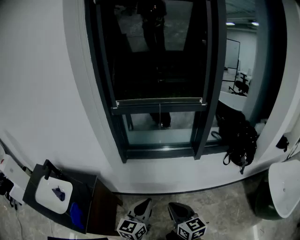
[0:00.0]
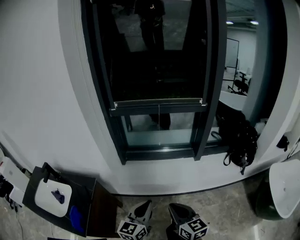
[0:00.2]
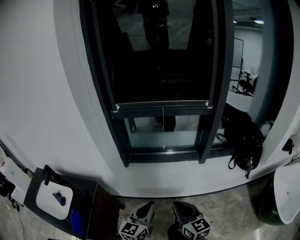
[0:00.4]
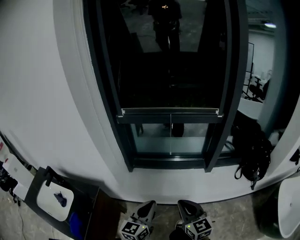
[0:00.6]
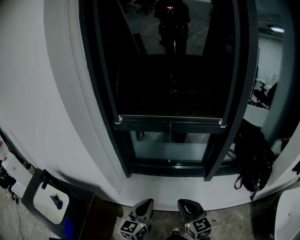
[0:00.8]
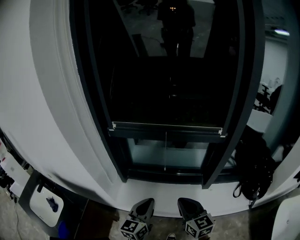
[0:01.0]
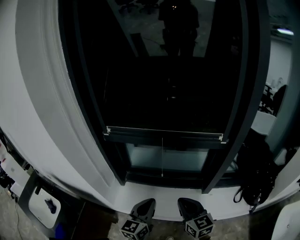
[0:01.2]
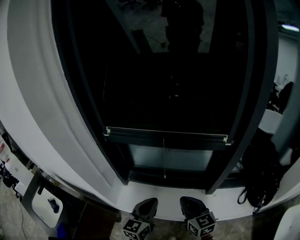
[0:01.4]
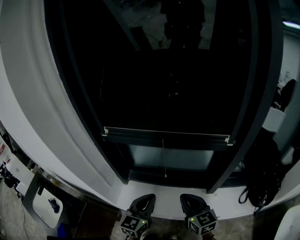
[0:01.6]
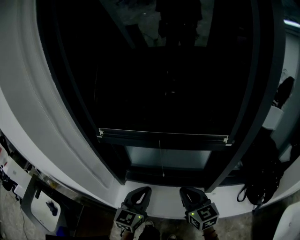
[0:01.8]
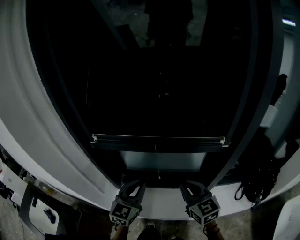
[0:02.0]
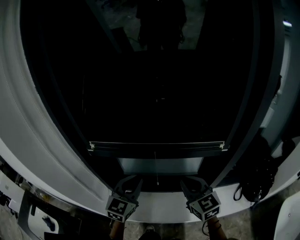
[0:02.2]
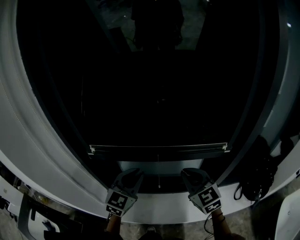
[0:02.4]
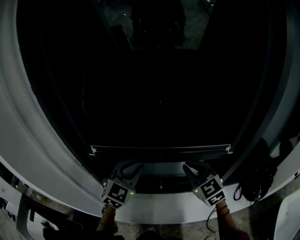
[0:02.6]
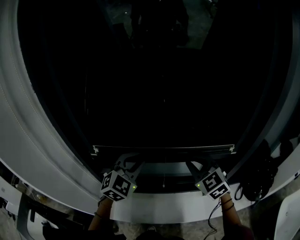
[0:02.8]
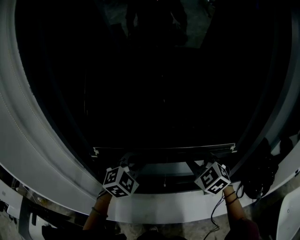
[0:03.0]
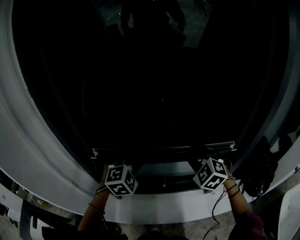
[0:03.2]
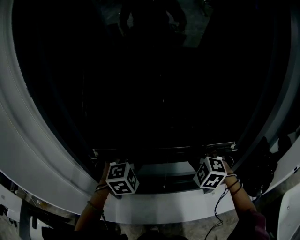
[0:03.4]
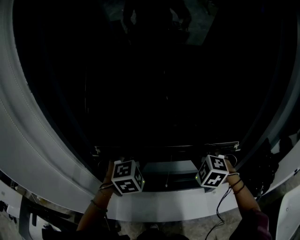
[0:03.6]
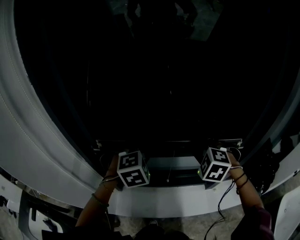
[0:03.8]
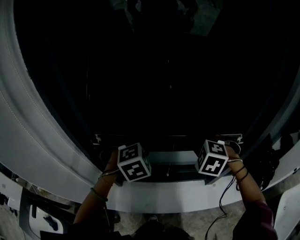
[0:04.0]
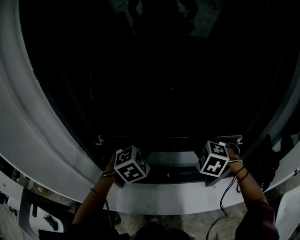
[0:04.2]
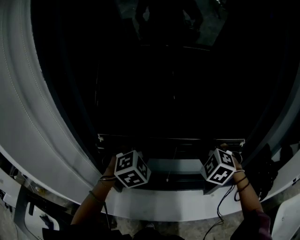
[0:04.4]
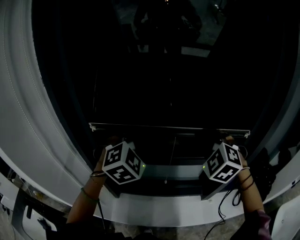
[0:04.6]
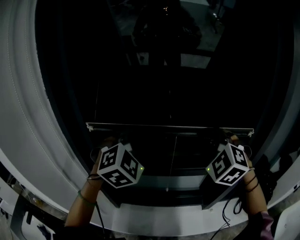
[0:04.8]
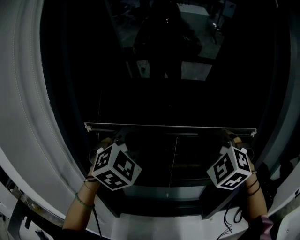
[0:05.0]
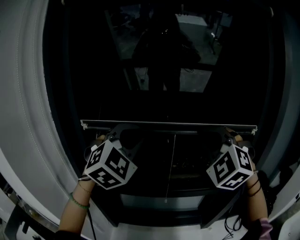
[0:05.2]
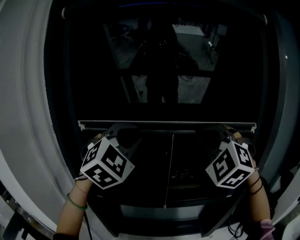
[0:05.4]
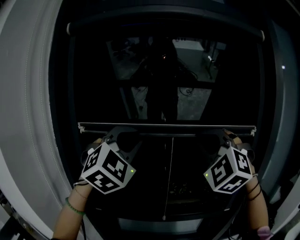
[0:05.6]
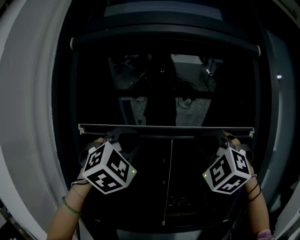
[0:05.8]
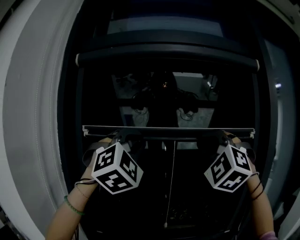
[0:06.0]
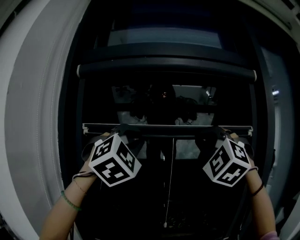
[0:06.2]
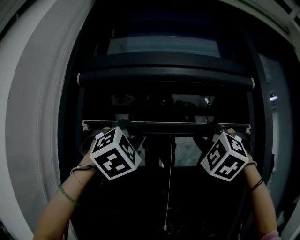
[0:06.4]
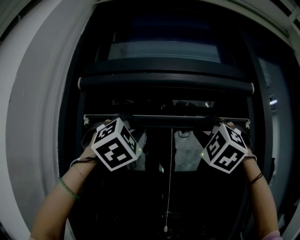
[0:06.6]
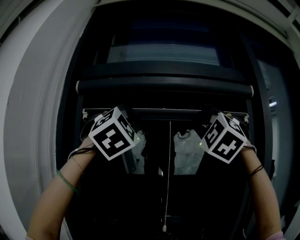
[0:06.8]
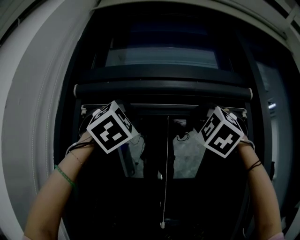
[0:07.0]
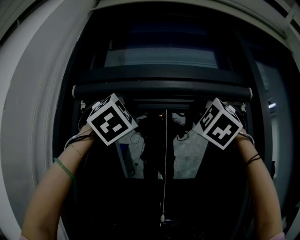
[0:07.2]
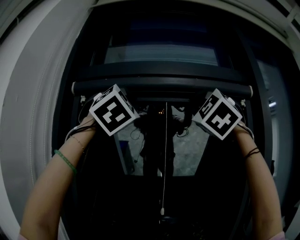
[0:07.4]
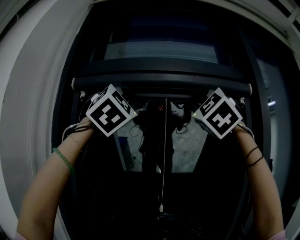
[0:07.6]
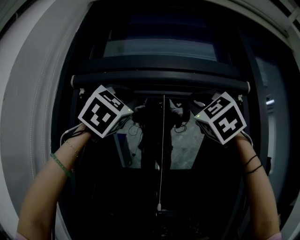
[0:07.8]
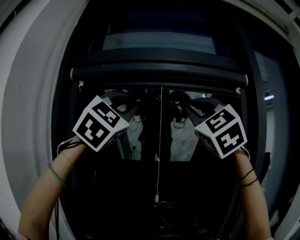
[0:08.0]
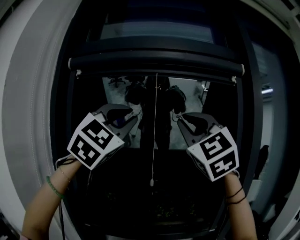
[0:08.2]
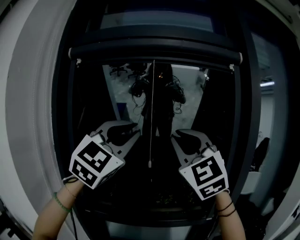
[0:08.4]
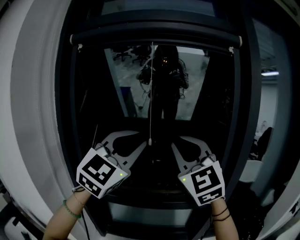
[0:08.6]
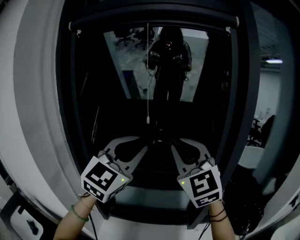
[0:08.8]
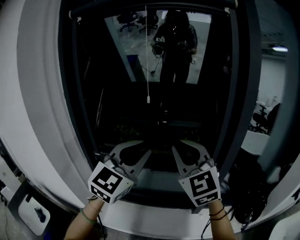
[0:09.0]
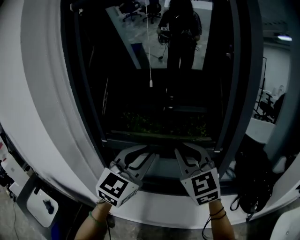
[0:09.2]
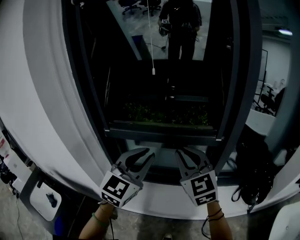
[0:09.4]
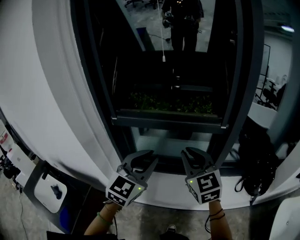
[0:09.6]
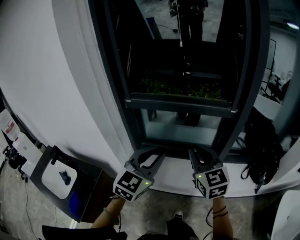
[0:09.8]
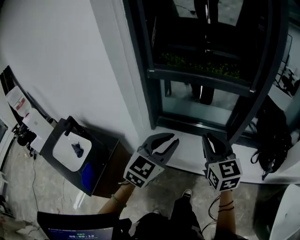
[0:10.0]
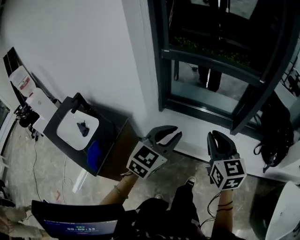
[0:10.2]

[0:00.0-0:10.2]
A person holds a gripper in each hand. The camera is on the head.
0:00.0 to 0:01.4: Both grippers travel together forward, roughly 35 cm.
0:01.4 to 0:03.0: The right gripper goes approximately 25 cm forward and upward, and rolls counterclockwise, seen from behind, by roughly 40 degrees. Meanwhile the left gripper travels forward by approximately 25 cm, and rolls clockwise, seen from behind, by some 60 degrees.
0:03.0 to 0:04.4: The right gripper swivels about 20 degrees.
0:04.4 to 0:05.8: The grippers both shift upward by approximately 40 cm. The right gripper angles its fingers upward, by about 40 degrees, while the left gripper angles its fingers upward, by about 40 degrees.
0:05.8 to 0:07.2: The grippers both shift upward by roughly 25 cm.
0:07.2 to 0:08.8: Both grippers travel together downward, some 35 cm. The right gripper swivels some 40 degrees, while the left gripper rotates around the line of its fingers by some 40 degrees, counterclockwise from behind.
0:08.8 to 0:10.2: The two grippers go roughly 50 cm backward and downward. The right gripper turns by roughly 40 degrees; the left gripper changes its angle by about 30 degrees.

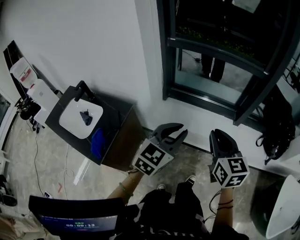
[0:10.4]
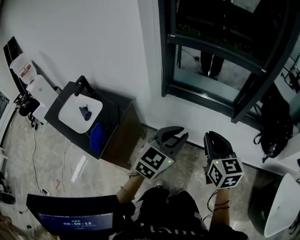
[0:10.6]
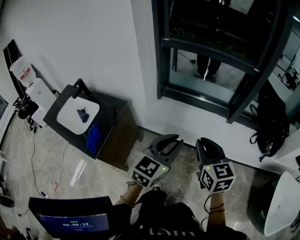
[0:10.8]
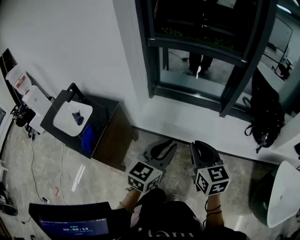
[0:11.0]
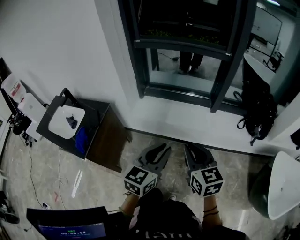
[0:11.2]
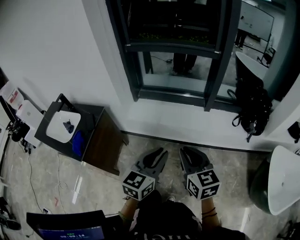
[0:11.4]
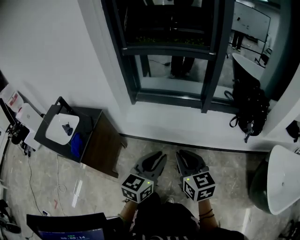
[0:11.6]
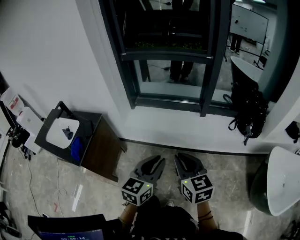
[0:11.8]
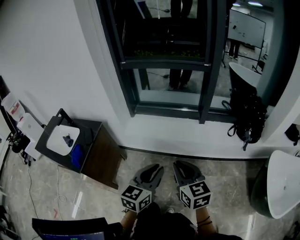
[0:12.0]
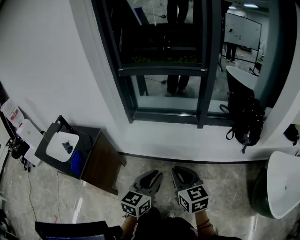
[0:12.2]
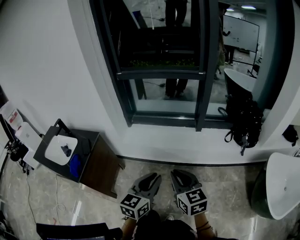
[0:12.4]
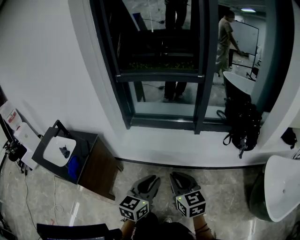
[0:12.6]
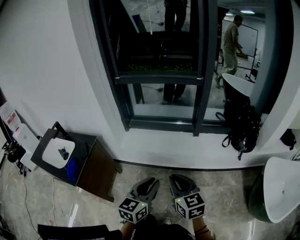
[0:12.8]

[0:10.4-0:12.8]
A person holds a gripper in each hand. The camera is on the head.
0:10.4 to 0:11.6: Both grippers move backward and to the right, some 25 cm.
0:11.6 to 0:12.8: The grippers make only small movements.

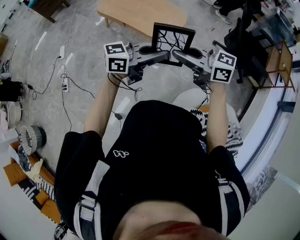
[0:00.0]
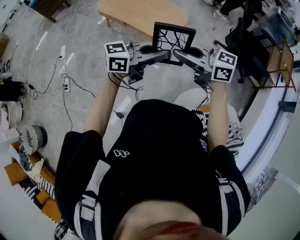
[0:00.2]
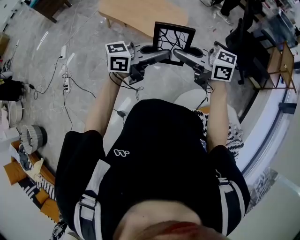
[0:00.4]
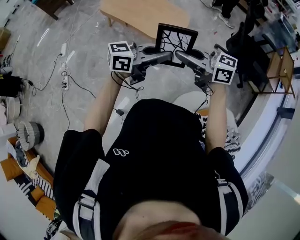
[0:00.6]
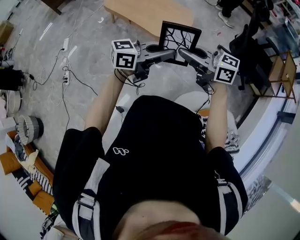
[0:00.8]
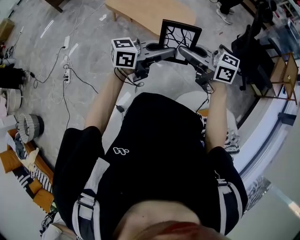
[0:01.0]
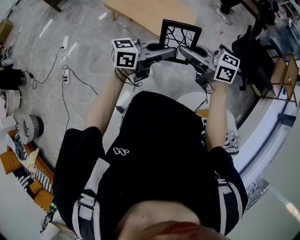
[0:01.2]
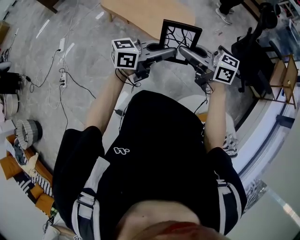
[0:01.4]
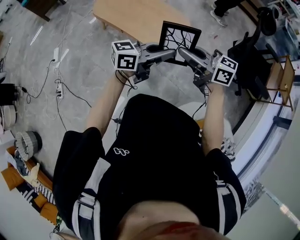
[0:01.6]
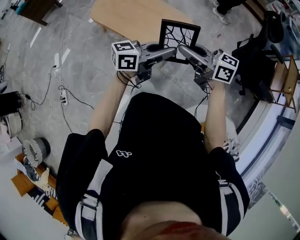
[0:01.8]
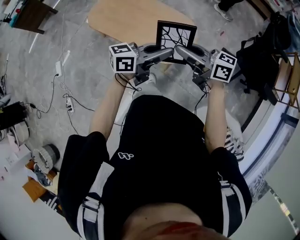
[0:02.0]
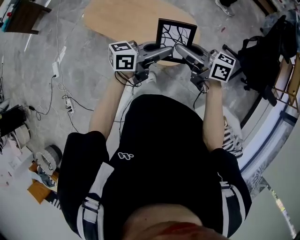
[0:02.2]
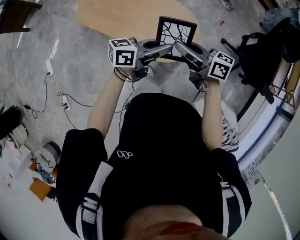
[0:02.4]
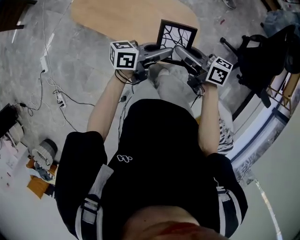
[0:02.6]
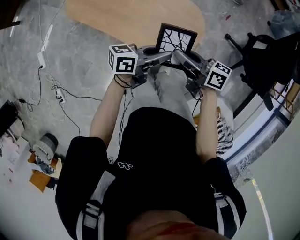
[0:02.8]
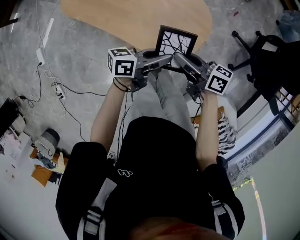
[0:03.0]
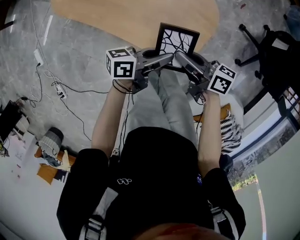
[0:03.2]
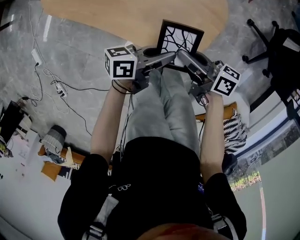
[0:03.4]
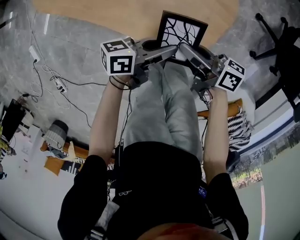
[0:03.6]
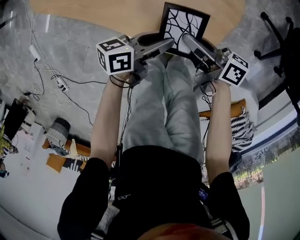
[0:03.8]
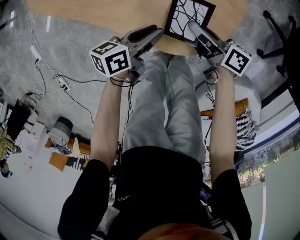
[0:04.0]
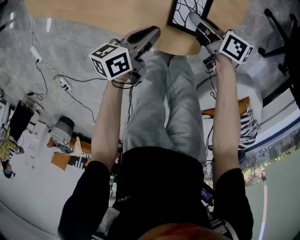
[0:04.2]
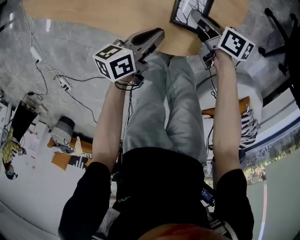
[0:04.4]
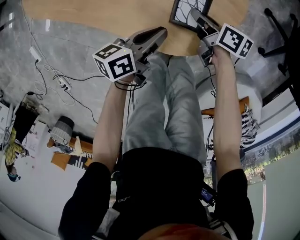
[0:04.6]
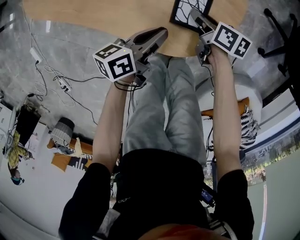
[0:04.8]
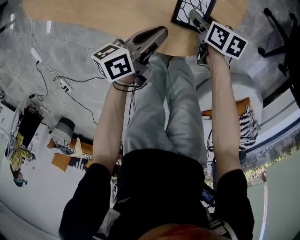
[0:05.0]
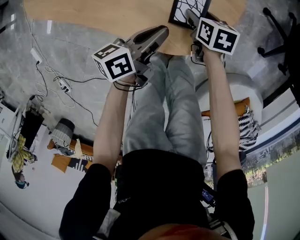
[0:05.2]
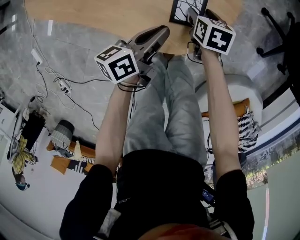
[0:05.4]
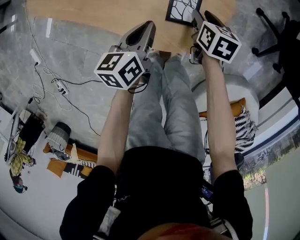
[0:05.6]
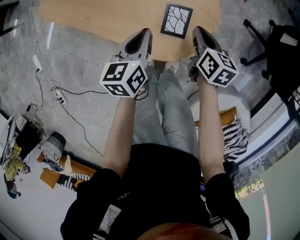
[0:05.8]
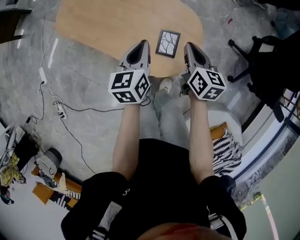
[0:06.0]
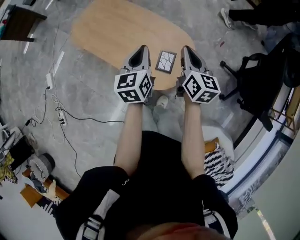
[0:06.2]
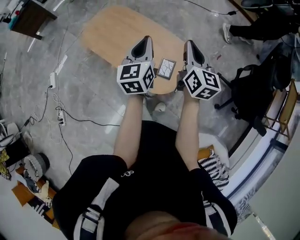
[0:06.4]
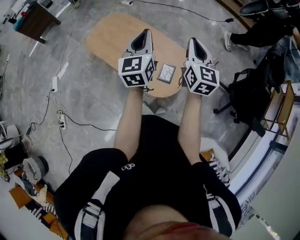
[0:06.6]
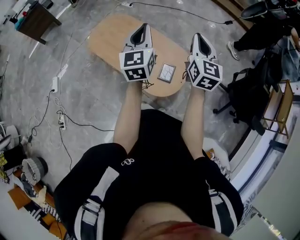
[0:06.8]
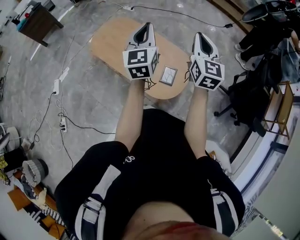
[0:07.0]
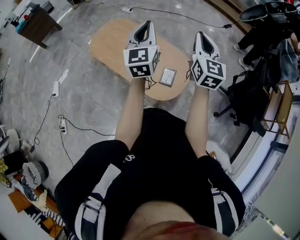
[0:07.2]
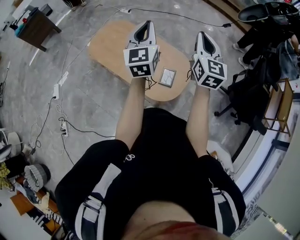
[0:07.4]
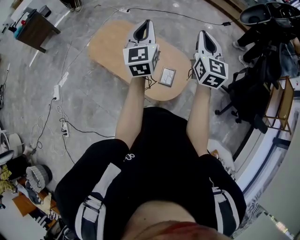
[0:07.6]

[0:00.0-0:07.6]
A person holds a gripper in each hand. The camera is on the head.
0:00.0 to 0:01.6: There are only small adjustments of the grippers.
0:01.6 to 0:03.0: Both grippers move downward, approximately 15 cm. The right gripper swivels approximately 30 degrees, while the left gripper turns by roughly 30 degrees.
0:03.0 to 0:04.6: Both grippers move downward, roughly 30 cm. The left gripper changes its angle by approximately 30 degrees. The right gripper turns by about 30 degrees.
0:04.6 to 0:06.0: Both grippers move upward, about 25 cm. The right gripper turns by about 40 degrees, and opens, then closes once more; the left gripper changes its angle by about 50 degrees.
0:06.0 to 0:07.6: Both grippers travel together upward, some 35 cm. The right gripper changes its angle by approximately 40 degrees; the left gripper turns by about 40 degrees.

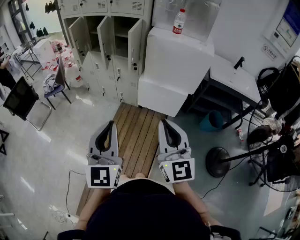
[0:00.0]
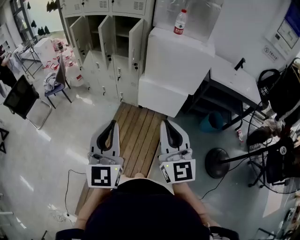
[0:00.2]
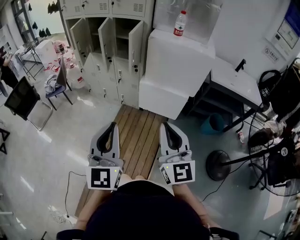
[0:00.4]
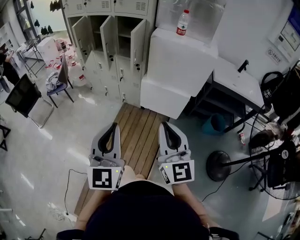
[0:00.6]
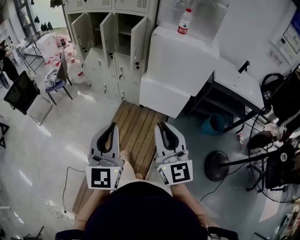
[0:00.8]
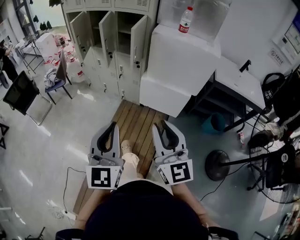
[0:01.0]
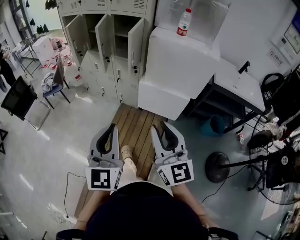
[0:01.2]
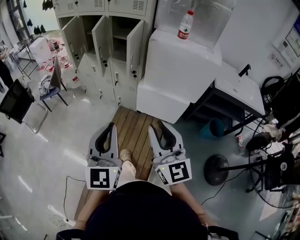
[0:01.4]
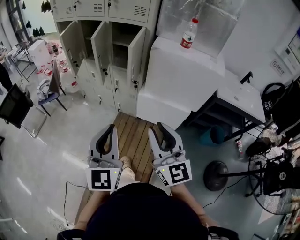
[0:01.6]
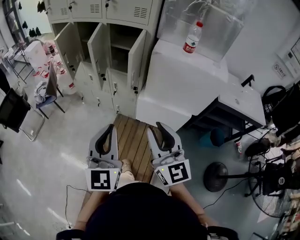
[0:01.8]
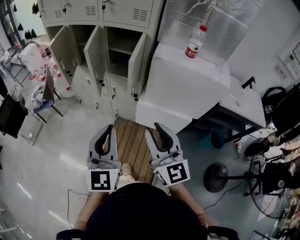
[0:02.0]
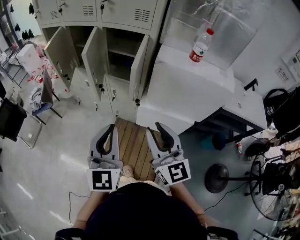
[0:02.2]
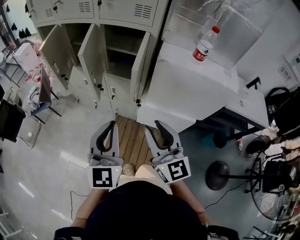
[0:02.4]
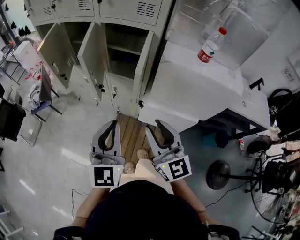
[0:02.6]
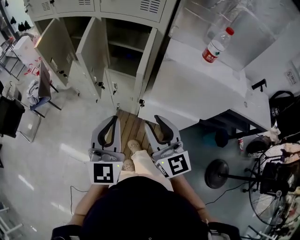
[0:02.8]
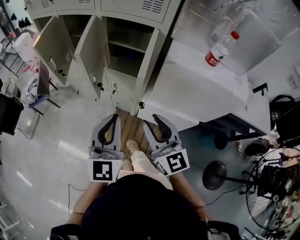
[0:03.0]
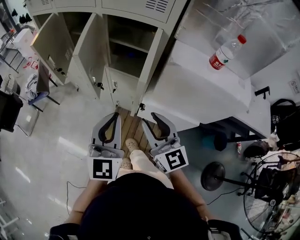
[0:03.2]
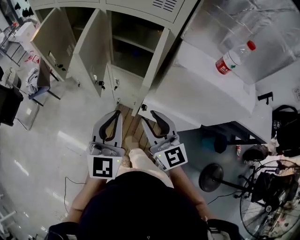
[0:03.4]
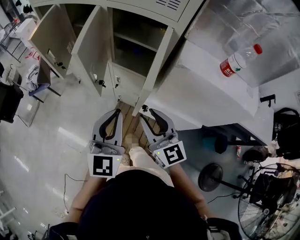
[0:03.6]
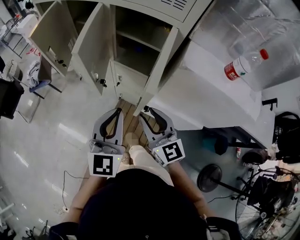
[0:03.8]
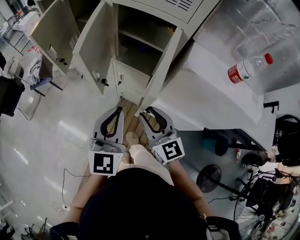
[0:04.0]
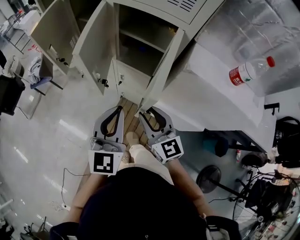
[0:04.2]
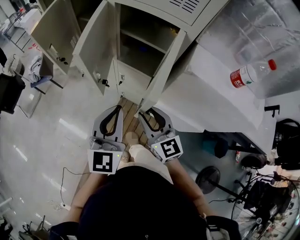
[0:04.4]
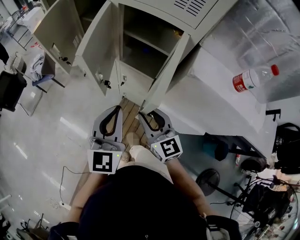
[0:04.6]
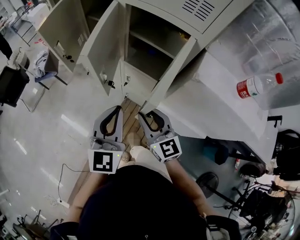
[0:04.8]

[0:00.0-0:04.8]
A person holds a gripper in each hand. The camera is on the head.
0:00.0 to 0:01.6: The two grippers go about 15 cm forward.
0:01.6 to 0:03.2: The grippers both shift forward by approximately 30 cm.
0:03.2 to 0:04.8: The right gripper heads forward and downward, covering roughly 15 cm; the left gripper is displaced forward by some 10 cm.
